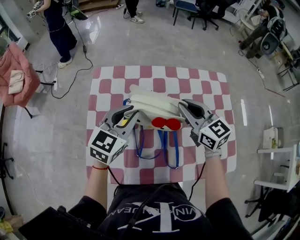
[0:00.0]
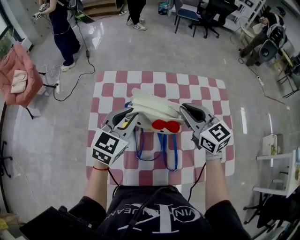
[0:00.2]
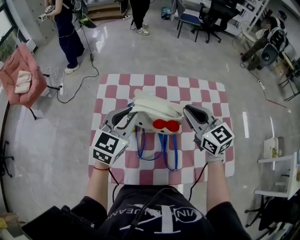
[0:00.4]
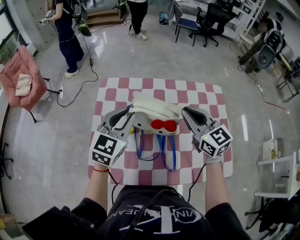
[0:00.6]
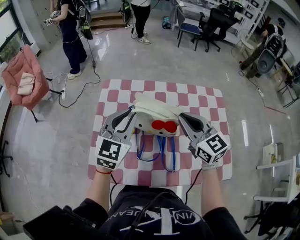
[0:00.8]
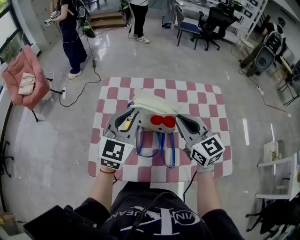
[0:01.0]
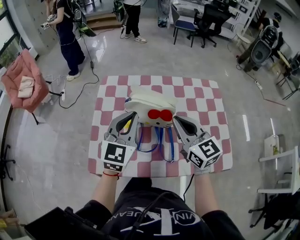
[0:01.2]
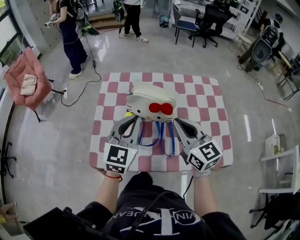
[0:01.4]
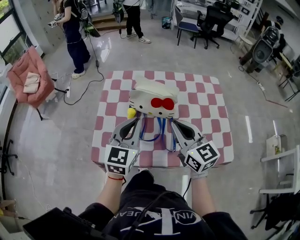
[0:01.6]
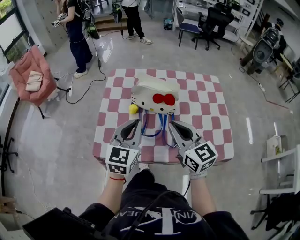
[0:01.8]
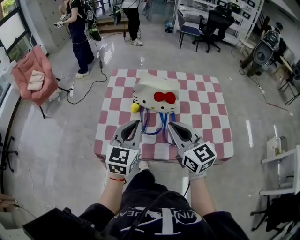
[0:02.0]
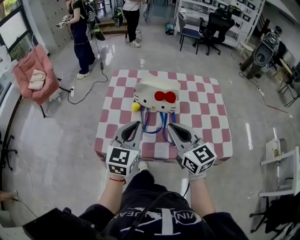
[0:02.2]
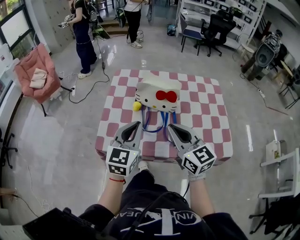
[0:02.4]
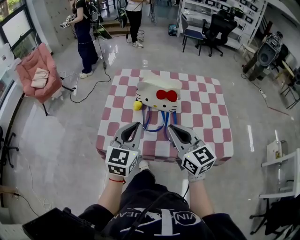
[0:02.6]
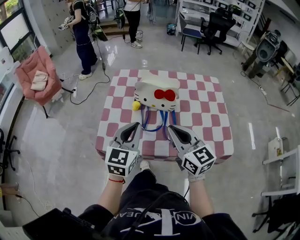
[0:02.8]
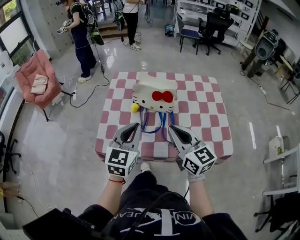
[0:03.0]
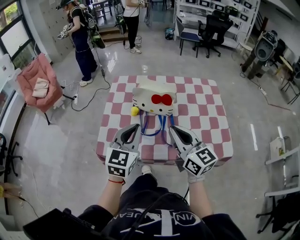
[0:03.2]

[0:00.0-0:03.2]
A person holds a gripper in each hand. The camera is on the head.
0:00.0 to 0:01.6: The grippers both shift backward by about 15 cm.
0:01.6 to 0:03.2: The grippers both shift backward by roughly 10 cm.

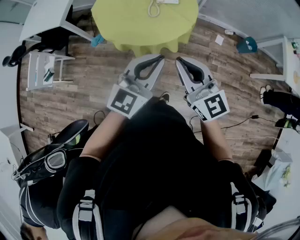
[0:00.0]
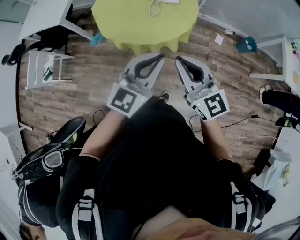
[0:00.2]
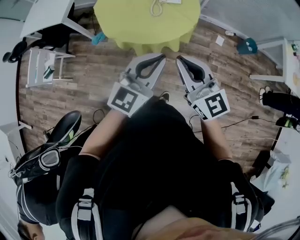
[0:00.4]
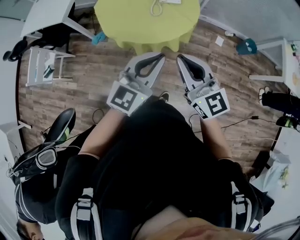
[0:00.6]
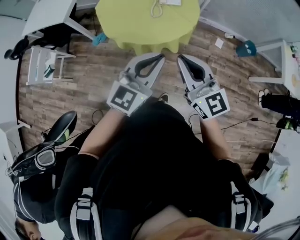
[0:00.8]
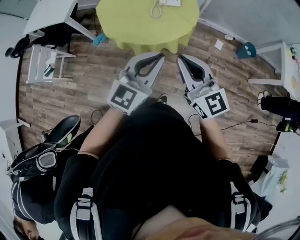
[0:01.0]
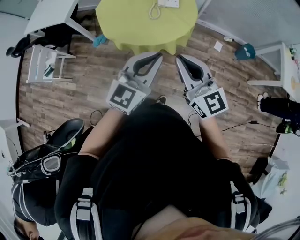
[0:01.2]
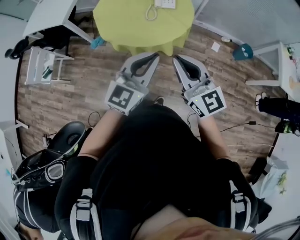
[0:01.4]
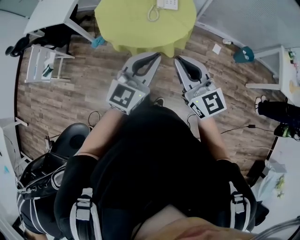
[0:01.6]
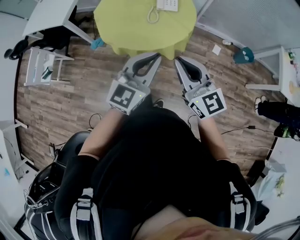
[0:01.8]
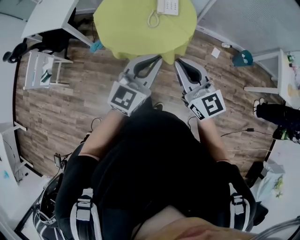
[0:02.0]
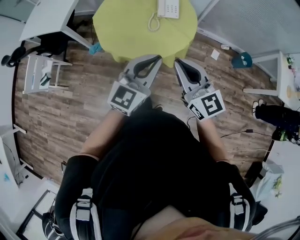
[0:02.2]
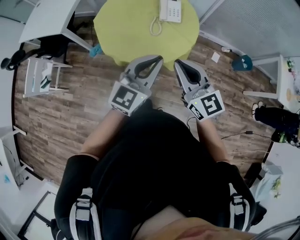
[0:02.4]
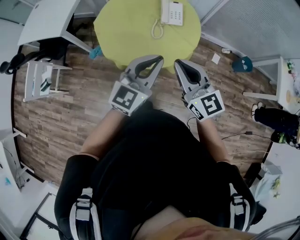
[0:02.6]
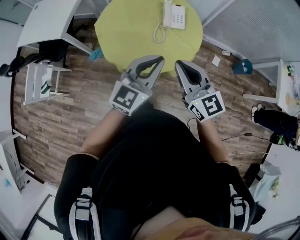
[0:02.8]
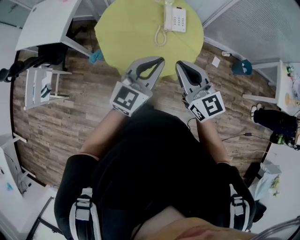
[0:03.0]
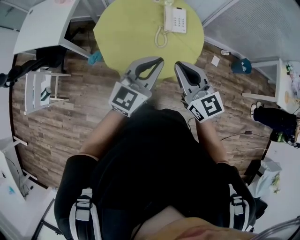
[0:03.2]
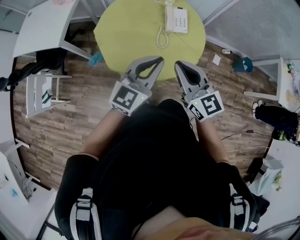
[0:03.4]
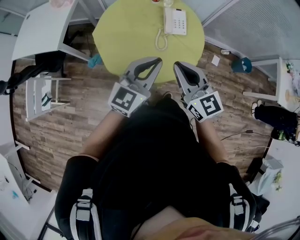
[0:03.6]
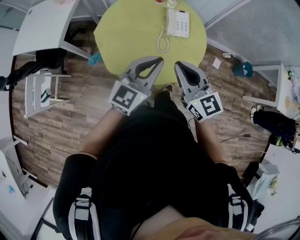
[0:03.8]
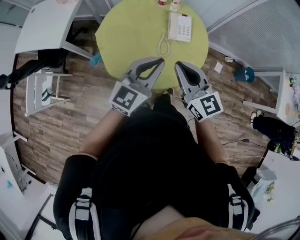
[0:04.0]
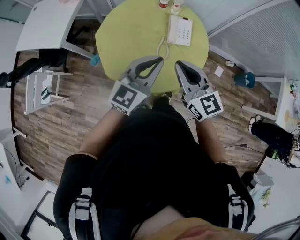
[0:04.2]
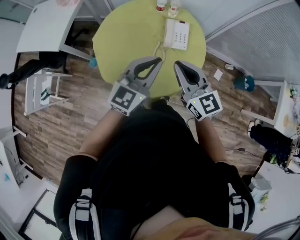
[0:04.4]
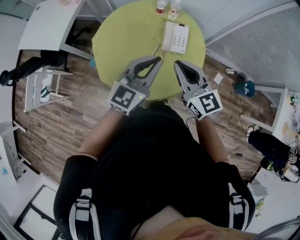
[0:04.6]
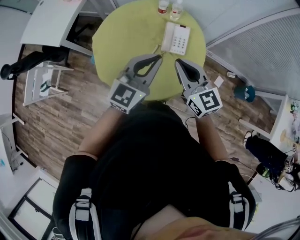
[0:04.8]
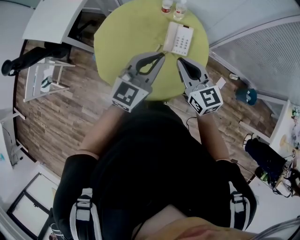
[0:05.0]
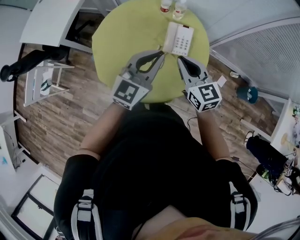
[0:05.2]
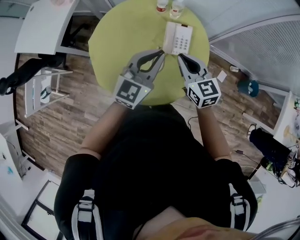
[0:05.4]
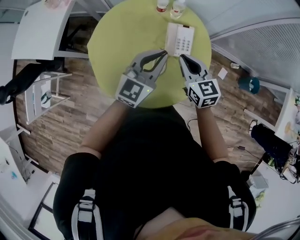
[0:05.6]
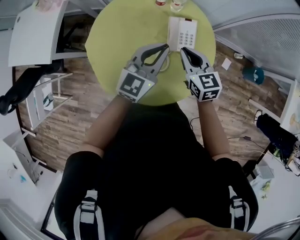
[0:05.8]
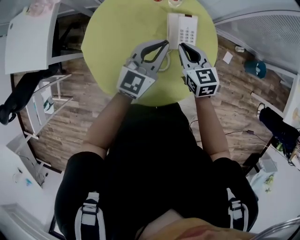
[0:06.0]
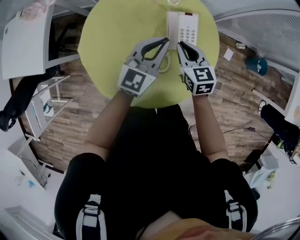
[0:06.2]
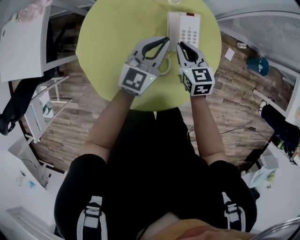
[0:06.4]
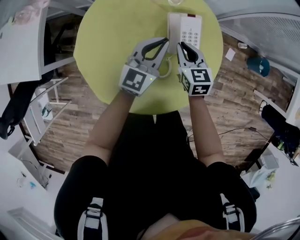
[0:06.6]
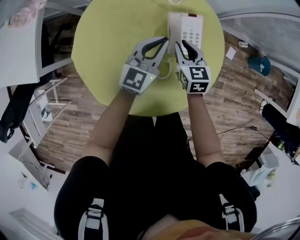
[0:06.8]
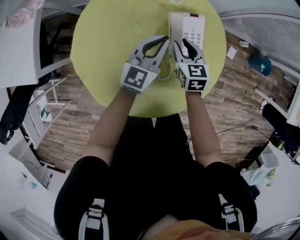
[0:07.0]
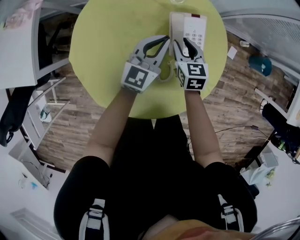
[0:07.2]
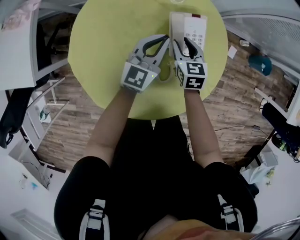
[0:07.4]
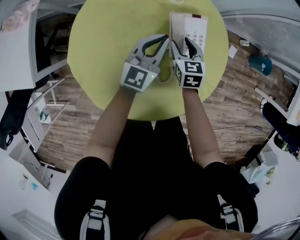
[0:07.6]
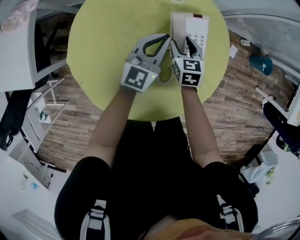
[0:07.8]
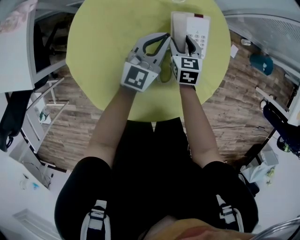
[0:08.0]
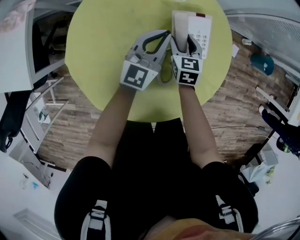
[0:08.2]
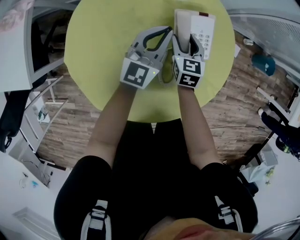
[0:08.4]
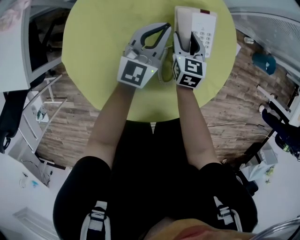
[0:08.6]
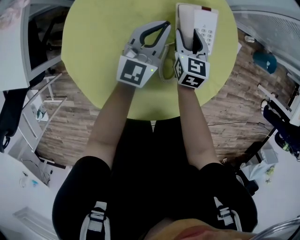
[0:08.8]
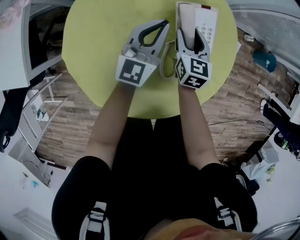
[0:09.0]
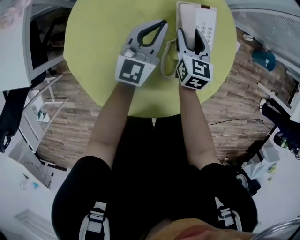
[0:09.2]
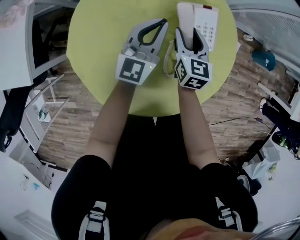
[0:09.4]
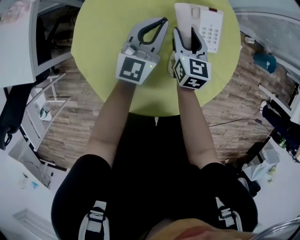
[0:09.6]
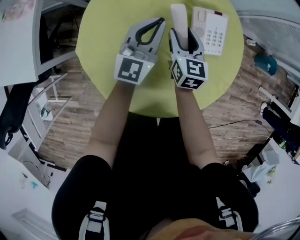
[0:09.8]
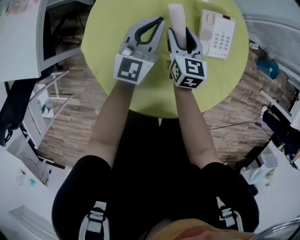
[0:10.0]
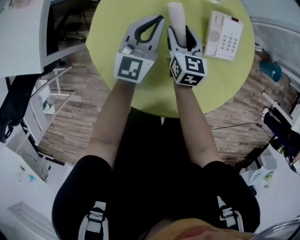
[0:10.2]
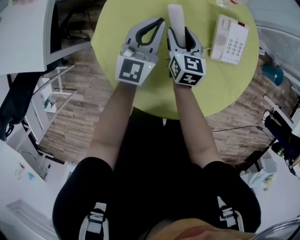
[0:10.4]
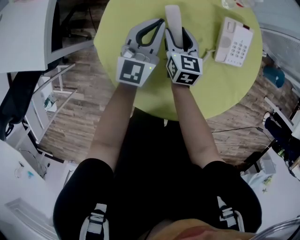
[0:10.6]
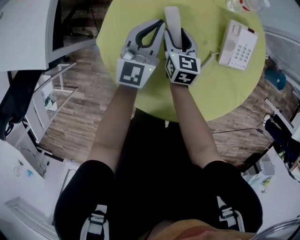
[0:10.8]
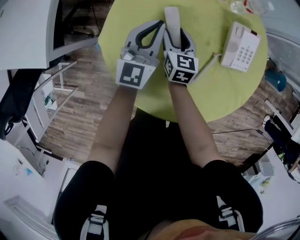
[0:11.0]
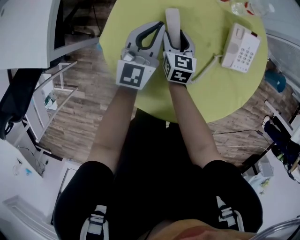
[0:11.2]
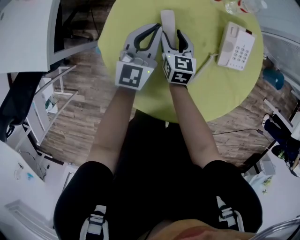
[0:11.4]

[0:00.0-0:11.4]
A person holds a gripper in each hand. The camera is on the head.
0:00.0 to 0:01.4: The grippers move only a little.
0:01.4 to 0:02.8: The grippers both shift forward by some 20 cm.
0:02.8 to 0:04.2: Both grippers move forward, some 15 cm.
0:04.2 to 0:05.6: The left gripper travels forward by roughly 20 cm; the right gripper travels forward and downward by approximately 20 cm.
0:05.6 to 0:07.2: Both grippers travel together downward and forward, roughly 25 cm. The right gripper turns by some 20 degrees, and opens.
0:07.2 to 0:08.6: The right gripper goes about 5 cm downward.
0:08.6 to 0:10.0: The right gripper moves to the left and upward, about 15 cm; the left gripper moves to the left, roughly 10 cm.
0:10.0 to 0:11.4: The left gripper moves to the left, roughly 10 cm. Meanwhile the right gripper heads to the left and downward, covering roughly 15 cm.

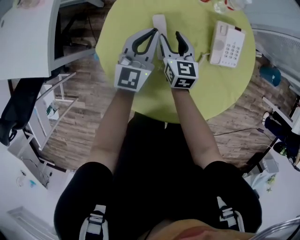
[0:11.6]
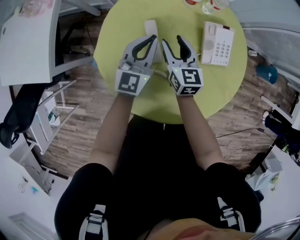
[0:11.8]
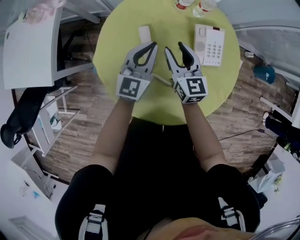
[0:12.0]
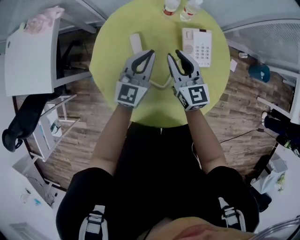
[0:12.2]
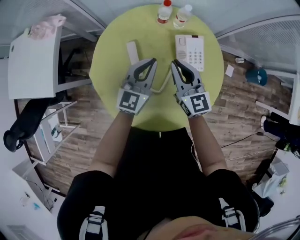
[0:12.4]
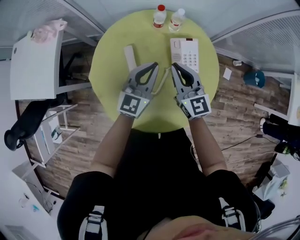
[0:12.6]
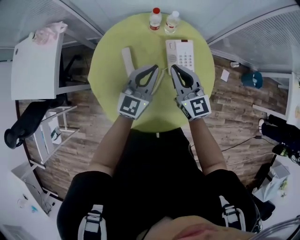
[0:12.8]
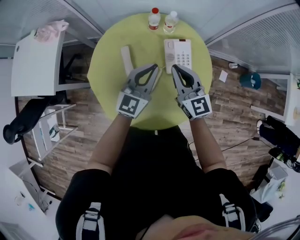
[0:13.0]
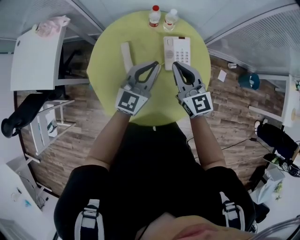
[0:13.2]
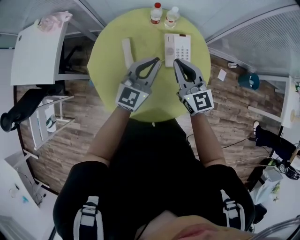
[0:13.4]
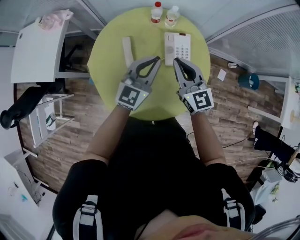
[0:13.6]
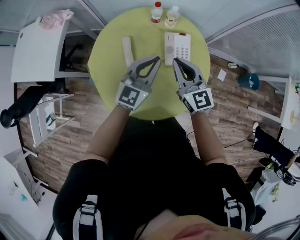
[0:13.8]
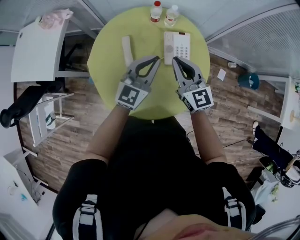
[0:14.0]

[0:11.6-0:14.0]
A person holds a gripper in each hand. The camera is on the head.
0:11.6 to 0:12.8: The right gripper shifts approximately 30 cm upward and to the right, changes its angle by approximately 30 degrees, and closes up. Meanwhile the left gripper moves to the right, upward and backward, approximately 25 cm.
0:12.8 to 0:14.0: The right gripper changes place by some 5 cm; the left gripper moves about 5 cm.

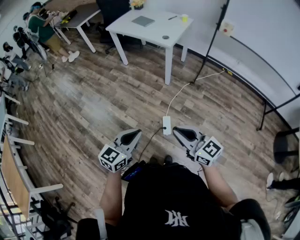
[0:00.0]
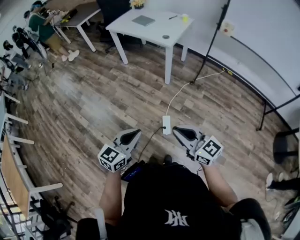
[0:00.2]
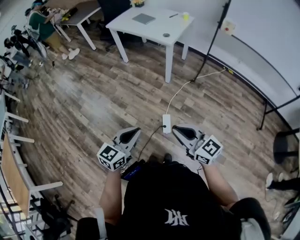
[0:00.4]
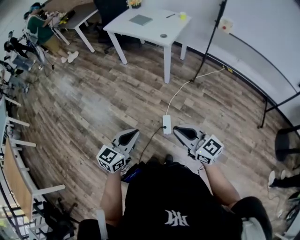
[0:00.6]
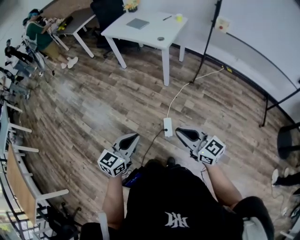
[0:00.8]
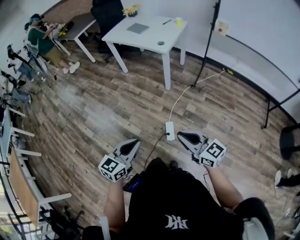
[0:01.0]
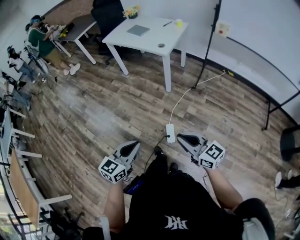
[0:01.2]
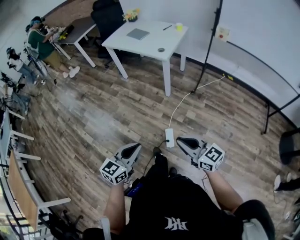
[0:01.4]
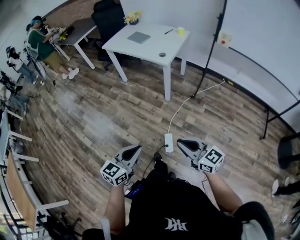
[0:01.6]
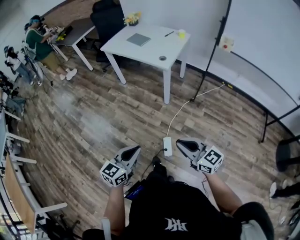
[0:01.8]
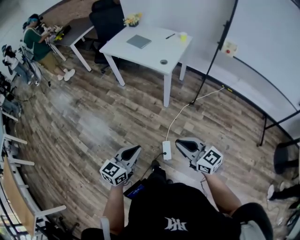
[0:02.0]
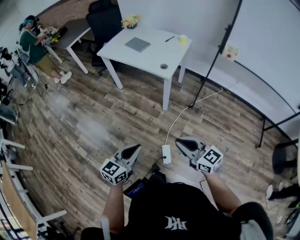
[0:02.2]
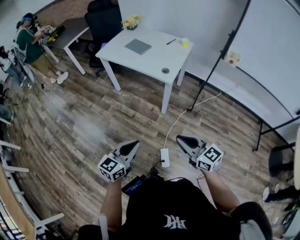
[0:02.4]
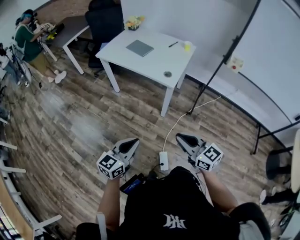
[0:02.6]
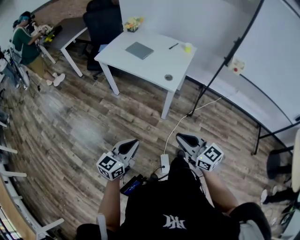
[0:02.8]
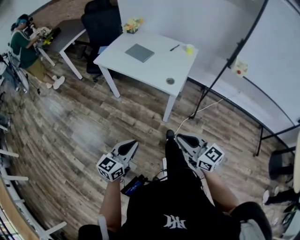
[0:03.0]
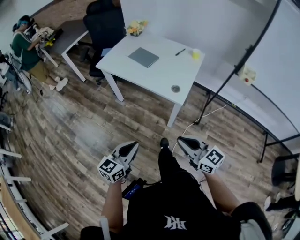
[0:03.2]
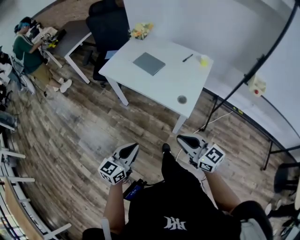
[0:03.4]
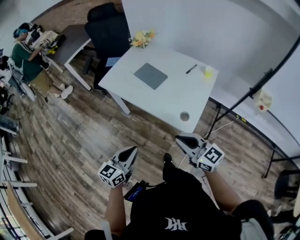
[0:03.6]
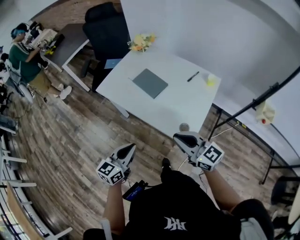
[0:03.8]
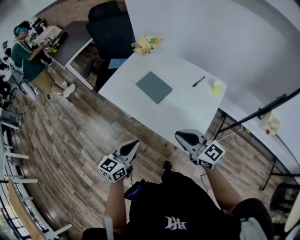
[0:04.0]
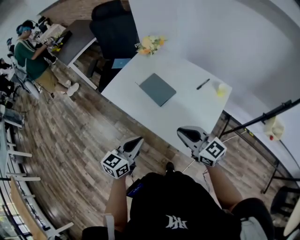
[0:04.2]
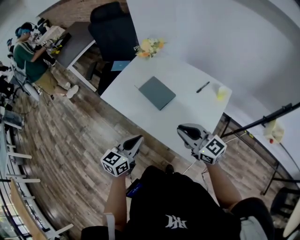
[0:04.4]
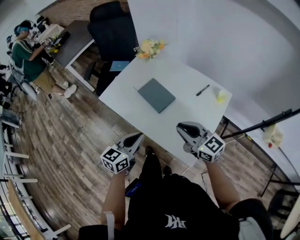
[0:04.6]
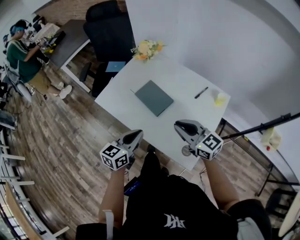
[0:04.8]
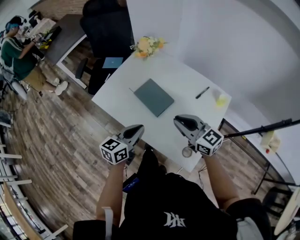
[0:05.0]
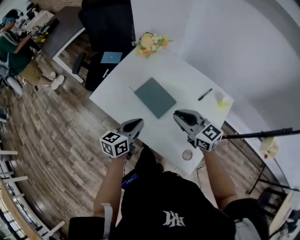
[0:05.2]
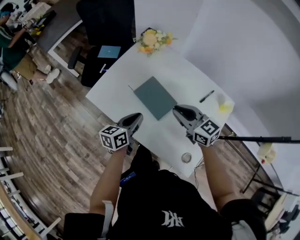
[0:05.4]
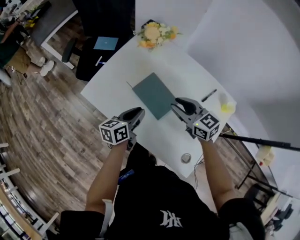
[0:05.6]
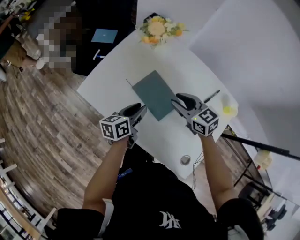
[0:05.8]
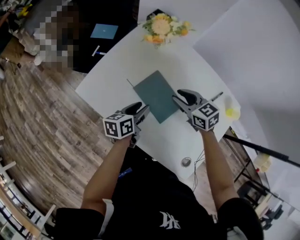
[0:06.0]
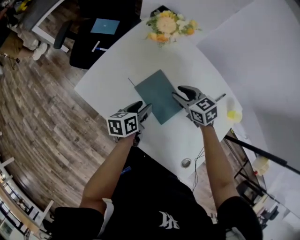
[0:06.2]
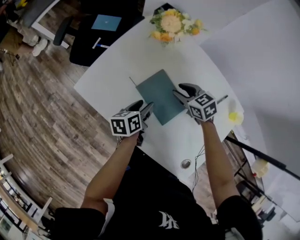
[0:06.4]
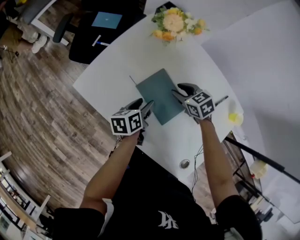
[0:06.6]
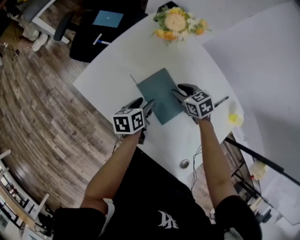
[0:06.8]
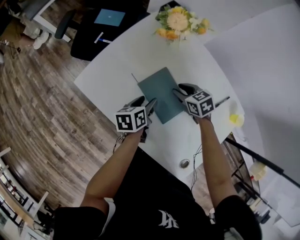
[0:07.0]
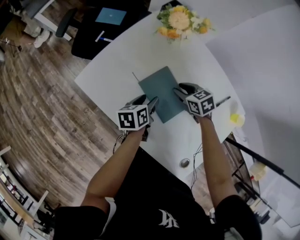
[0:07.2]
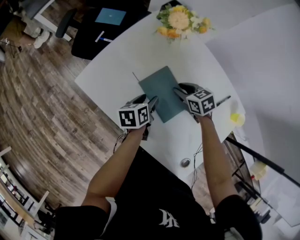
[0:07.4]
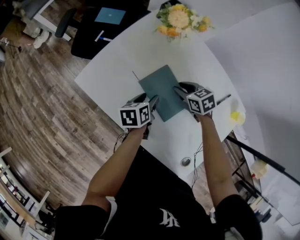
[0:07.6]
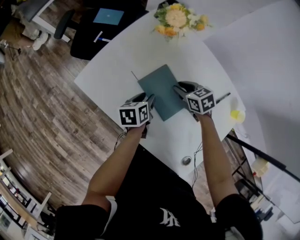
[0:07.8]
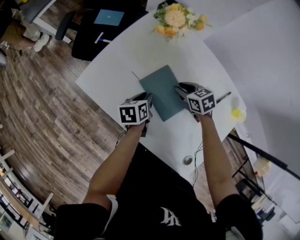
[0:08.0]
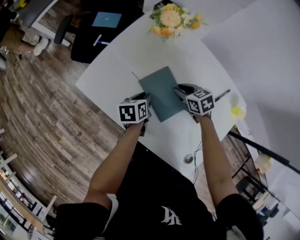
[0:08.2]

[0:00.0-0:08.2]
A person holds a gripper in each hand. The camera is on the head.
0:00.0 to 0:01.6: Both grippers move forward, about 5 cm.
0:01.6 to 0:03.2: The two grippers go approximately 40 cm forward.
0:03.2 to 0:05.0: The two grippers travel together, forward, some 50 cm.
0:05.0 to 0:06.6: The grippers both shift forward and downward by roughly 30 cm. The left gripper rotates approximately 40 degrees, and opens, while the right gripper points its fingers roughly 40 degrees further downward, and opens.
0:06.6 to 0:08.2: The left gripper closes.
